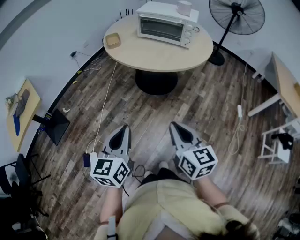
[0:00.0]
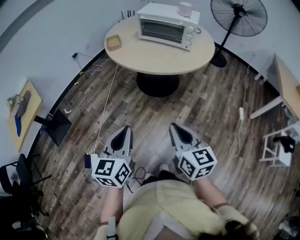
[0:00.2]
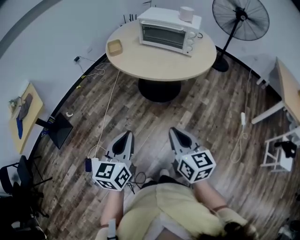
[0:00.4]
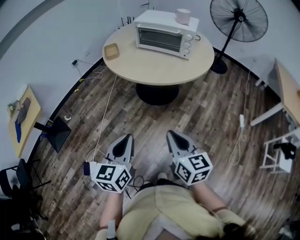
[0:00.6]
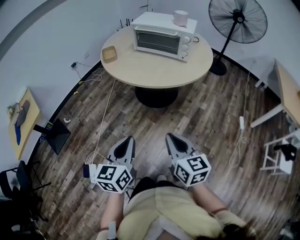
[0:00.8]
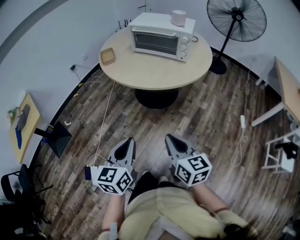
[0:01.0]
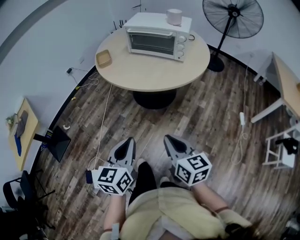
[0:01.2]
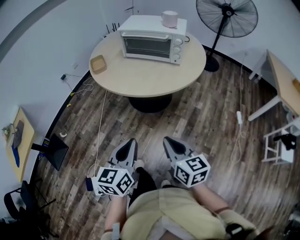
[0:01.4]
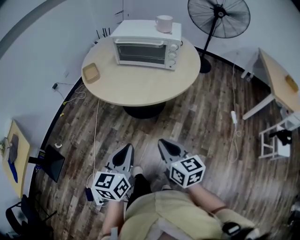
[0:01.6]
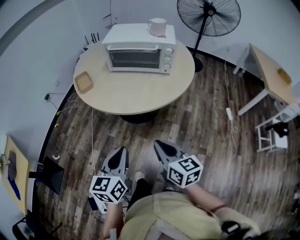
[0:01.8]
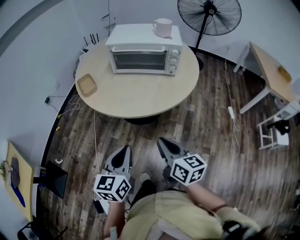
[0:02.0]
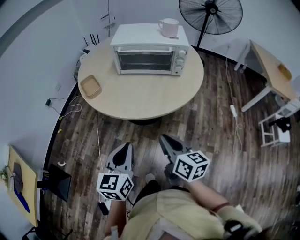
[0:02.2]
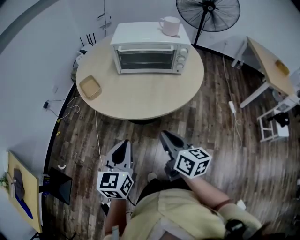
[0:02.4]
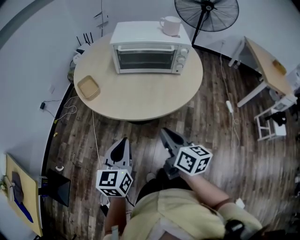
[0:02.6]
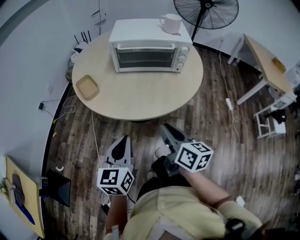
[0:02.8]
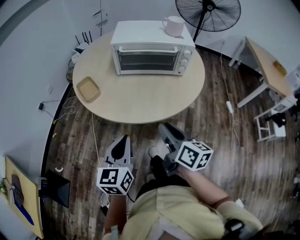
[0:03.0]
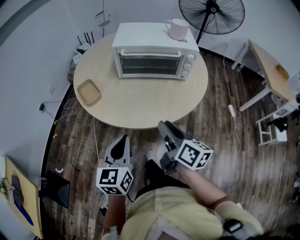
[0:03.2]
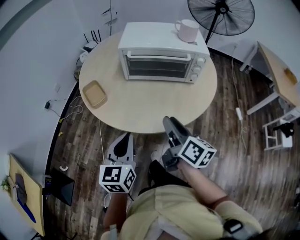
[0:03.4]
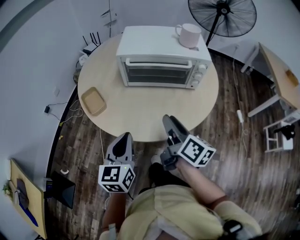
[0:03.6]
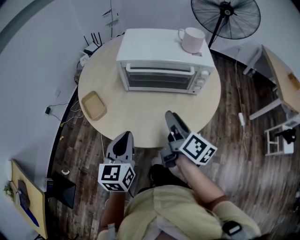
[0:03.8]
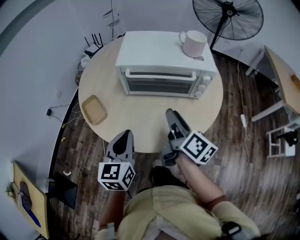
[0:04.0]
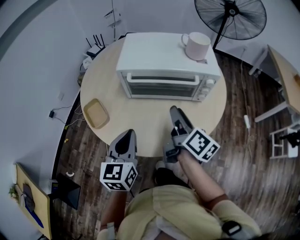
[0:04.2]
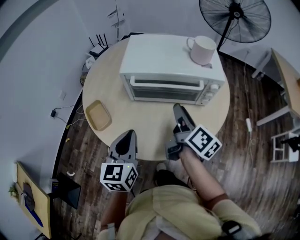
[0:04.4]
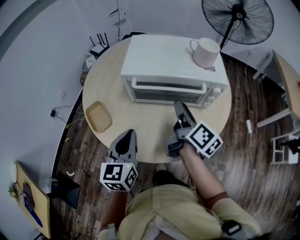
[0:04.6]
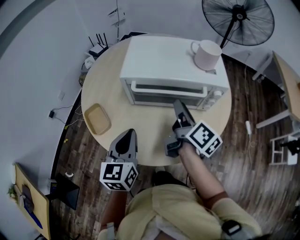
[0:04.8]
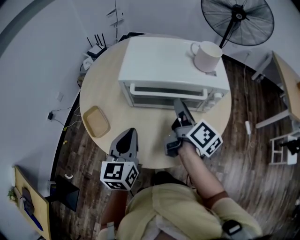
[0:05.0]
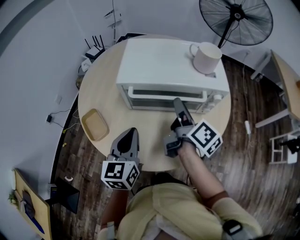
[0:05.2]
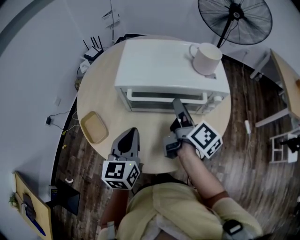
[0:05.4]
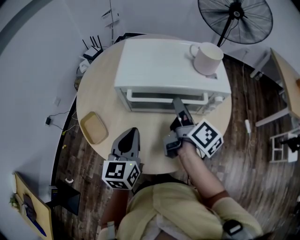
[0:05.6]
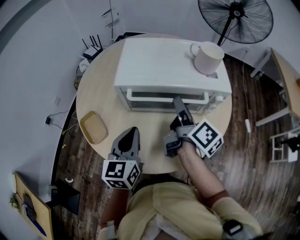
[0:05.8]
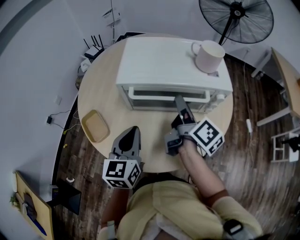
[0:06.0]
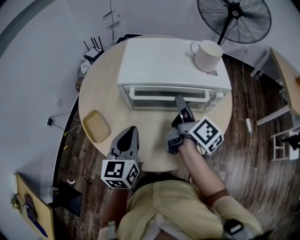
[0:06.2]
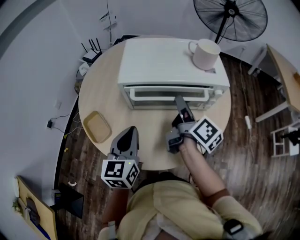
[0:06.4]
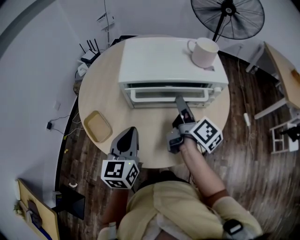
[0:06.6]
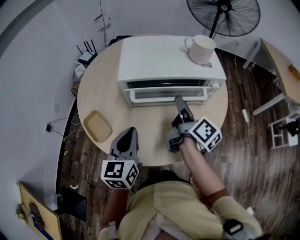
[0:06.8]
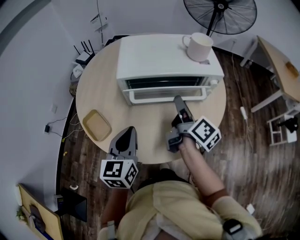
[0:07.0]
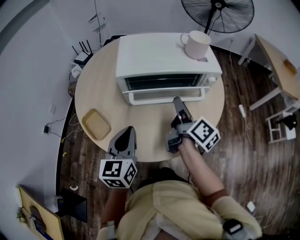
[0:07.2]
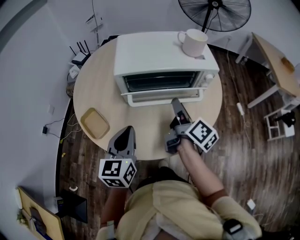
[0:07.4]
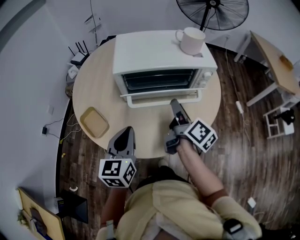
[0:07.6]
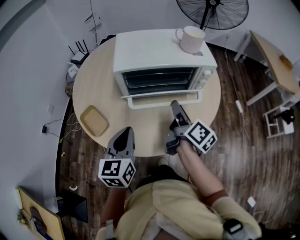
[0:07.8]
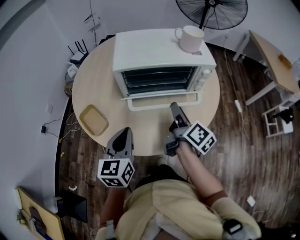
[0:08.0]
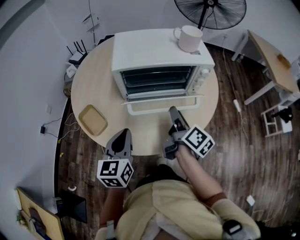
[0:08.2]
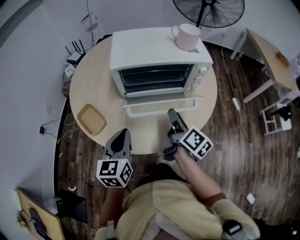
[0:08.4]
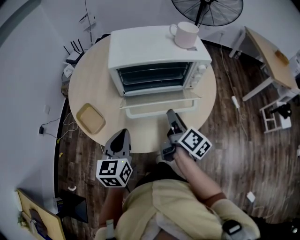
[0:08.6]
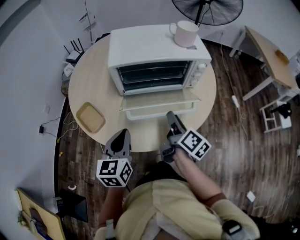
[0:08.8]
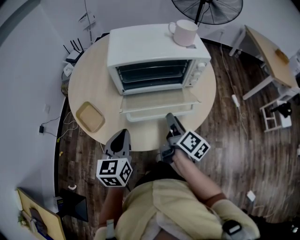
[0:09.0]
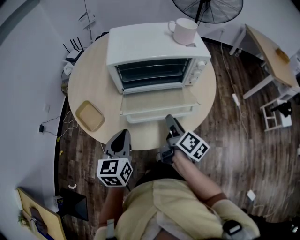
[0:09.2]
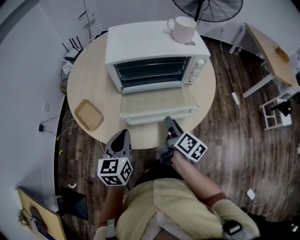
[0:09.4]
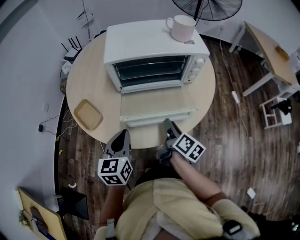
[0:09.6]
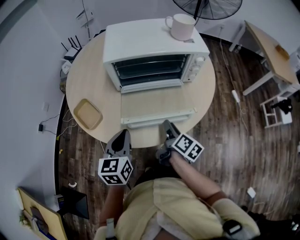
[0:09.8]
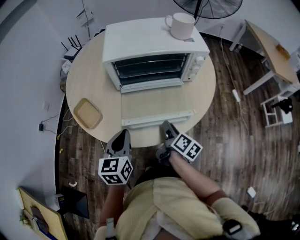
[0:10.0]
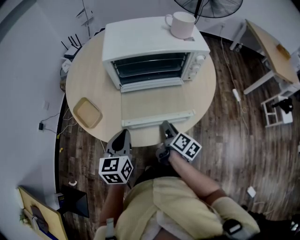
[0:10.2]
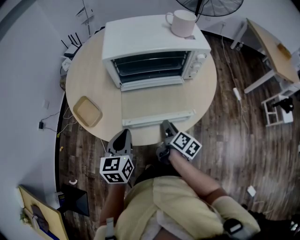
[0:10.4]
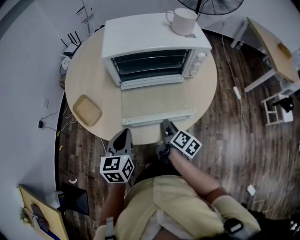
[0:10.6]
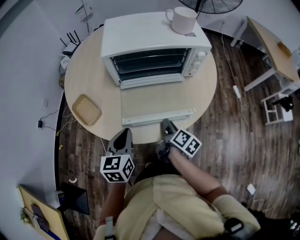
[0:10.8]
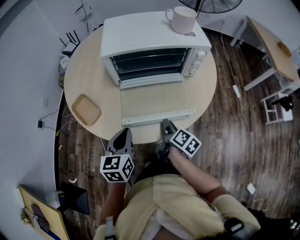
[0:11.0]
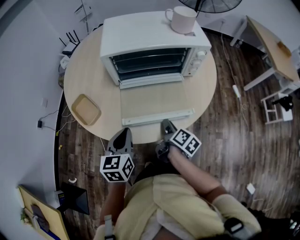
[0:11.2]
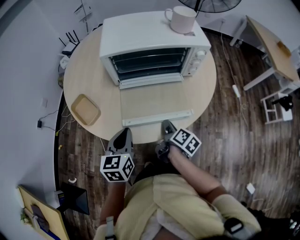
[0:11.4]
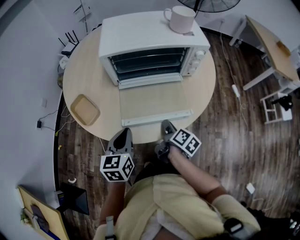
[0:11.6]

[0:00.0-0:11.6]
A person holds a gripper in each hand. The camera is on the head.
0:00.0 to 0:01.4: The left gripper moves forward and to the right, some 15 cm. The right gripper goes approximately 10 cm forward.
0:01.4 to 0:02.8: Both grippers move forward and to the left, about 25 cm. The right gripper turns by some 30 degrees.
0:02.8 to 0:04.4: Both grippers travel together forward, roughly 25 cm. The right gripper rotates approximately 20 degrees, and opens.
0:04.4 to 0:05.8: The two grippers go some 10 cm forward.
0:05.8 to 0:07.2: The right gripper moves backward, approximately 5 cm; the left gripper ends up about 5 cm from where it was.
0:07.2 to 0:08.8: The right gripper travels backward and downward by some 10 cm, while the left gripper moves approximately 5 cm.
0:08.8 to 0:10.2: The right gripper travels downward by some 10 cm.
0:10.2 to 0:11.6: The grippers make only small movements.

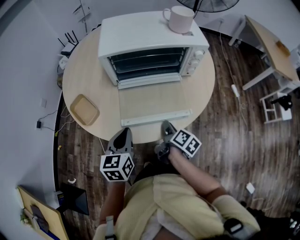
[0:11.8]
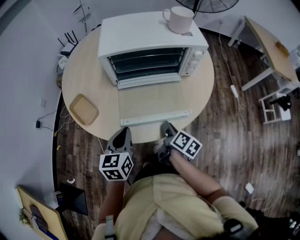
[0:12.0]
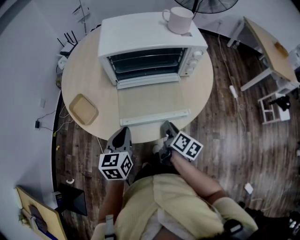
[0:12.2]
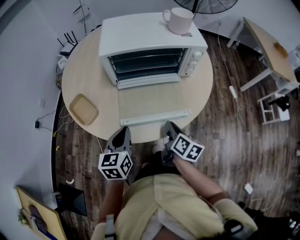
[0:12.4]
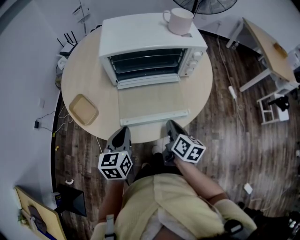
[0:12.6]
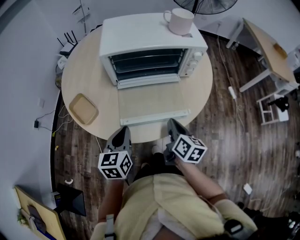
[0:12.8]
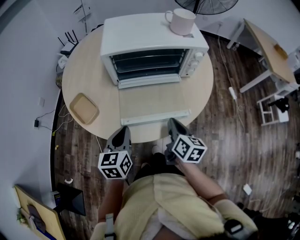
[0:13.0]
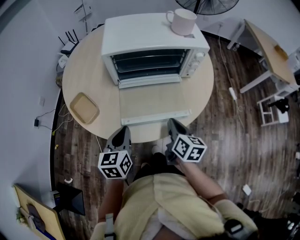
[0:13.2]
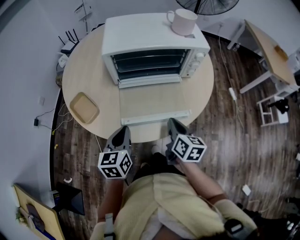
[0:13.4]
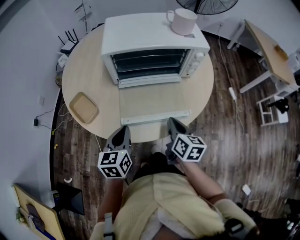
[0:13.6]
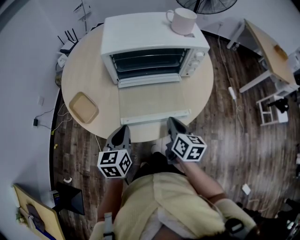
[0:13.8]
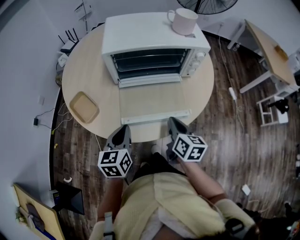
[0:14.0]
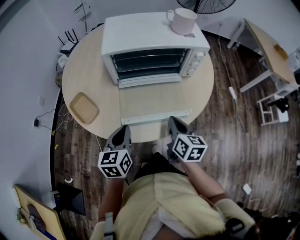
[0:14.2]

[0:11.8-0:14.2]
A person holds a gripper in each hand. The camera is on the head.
0:11.8 to 0:13.0: The right gripper moves upward, roughly 10 cm, and rotates approximately 30 degrees.
0:13.0 to 0:14.2: The grippers move only a little.

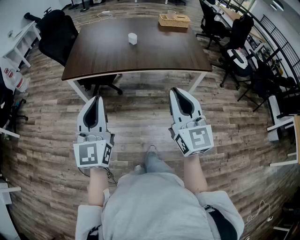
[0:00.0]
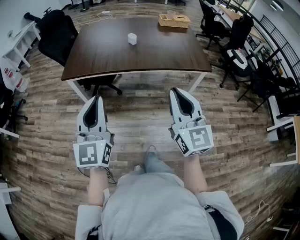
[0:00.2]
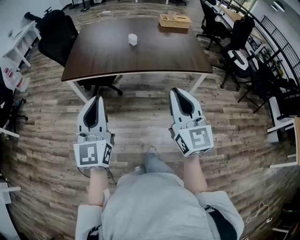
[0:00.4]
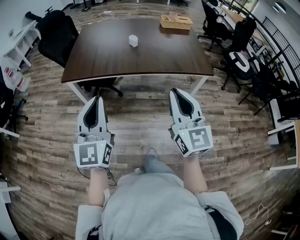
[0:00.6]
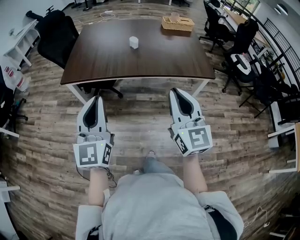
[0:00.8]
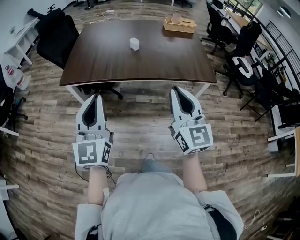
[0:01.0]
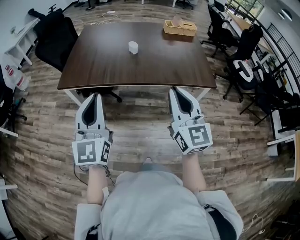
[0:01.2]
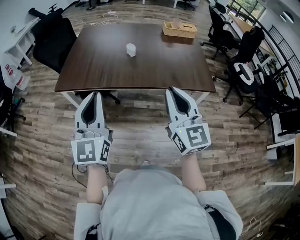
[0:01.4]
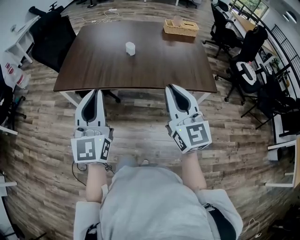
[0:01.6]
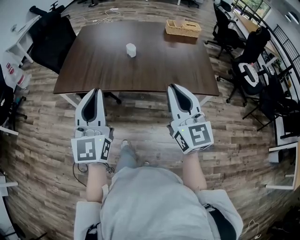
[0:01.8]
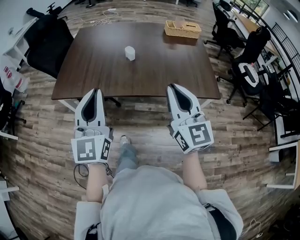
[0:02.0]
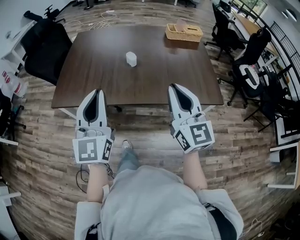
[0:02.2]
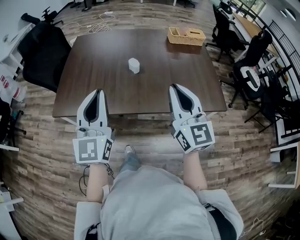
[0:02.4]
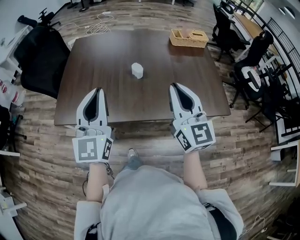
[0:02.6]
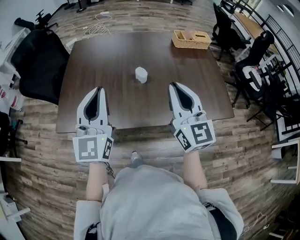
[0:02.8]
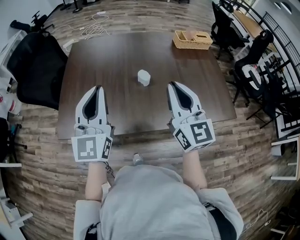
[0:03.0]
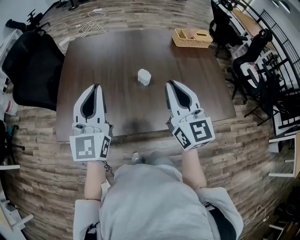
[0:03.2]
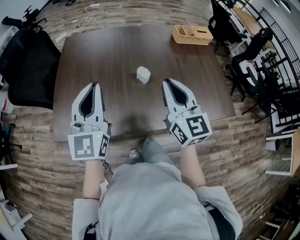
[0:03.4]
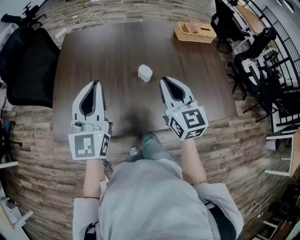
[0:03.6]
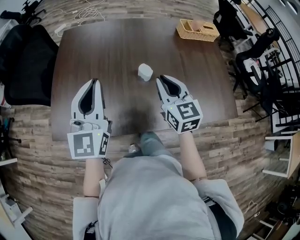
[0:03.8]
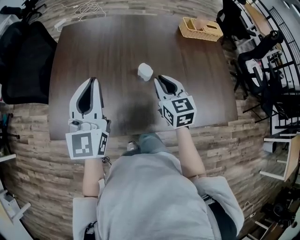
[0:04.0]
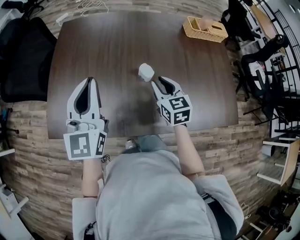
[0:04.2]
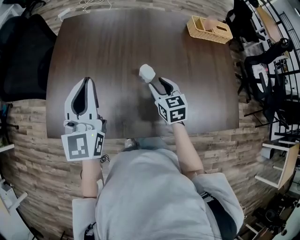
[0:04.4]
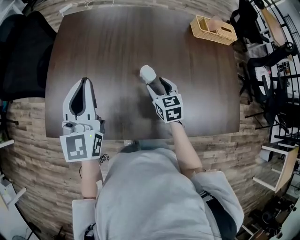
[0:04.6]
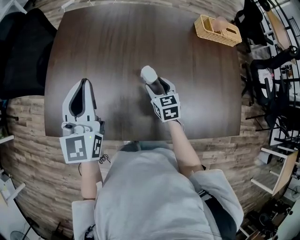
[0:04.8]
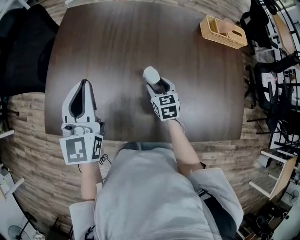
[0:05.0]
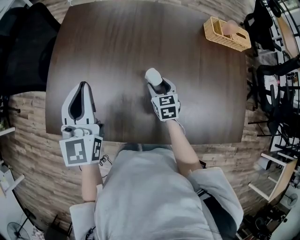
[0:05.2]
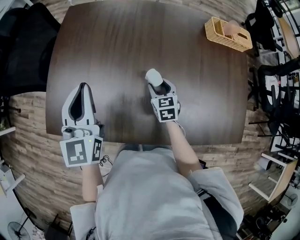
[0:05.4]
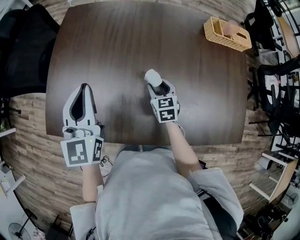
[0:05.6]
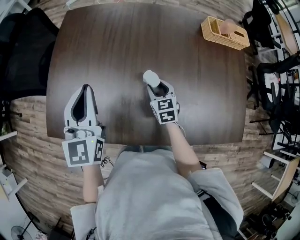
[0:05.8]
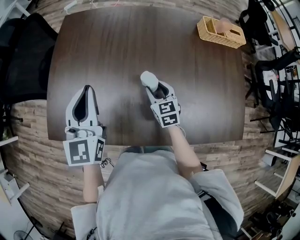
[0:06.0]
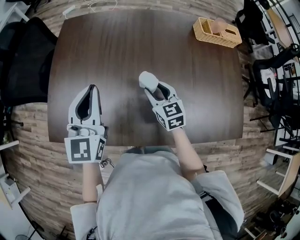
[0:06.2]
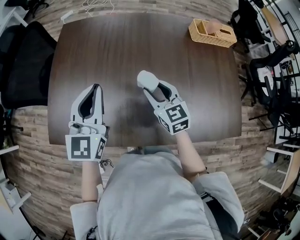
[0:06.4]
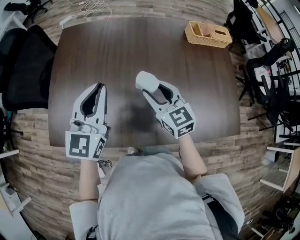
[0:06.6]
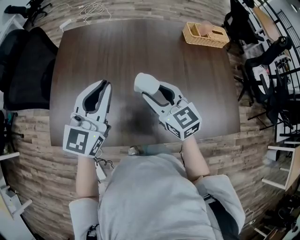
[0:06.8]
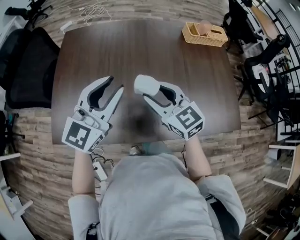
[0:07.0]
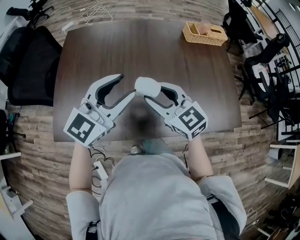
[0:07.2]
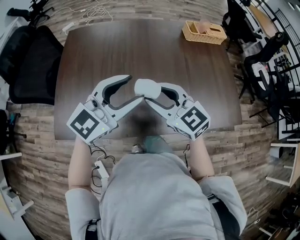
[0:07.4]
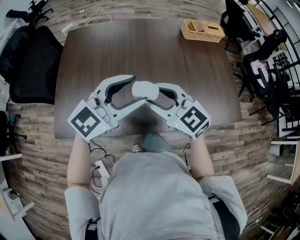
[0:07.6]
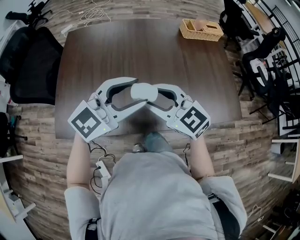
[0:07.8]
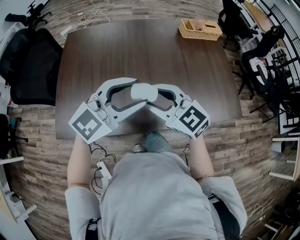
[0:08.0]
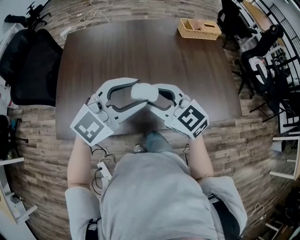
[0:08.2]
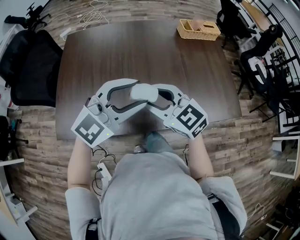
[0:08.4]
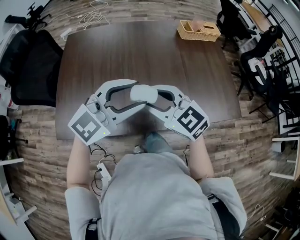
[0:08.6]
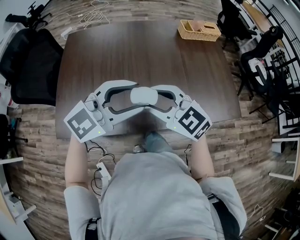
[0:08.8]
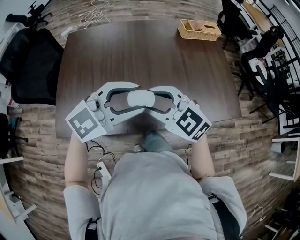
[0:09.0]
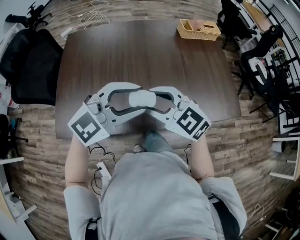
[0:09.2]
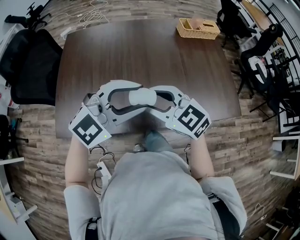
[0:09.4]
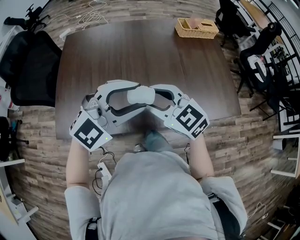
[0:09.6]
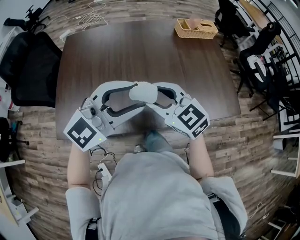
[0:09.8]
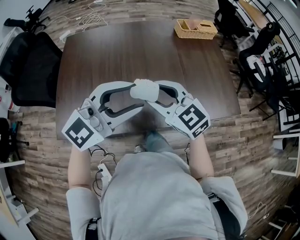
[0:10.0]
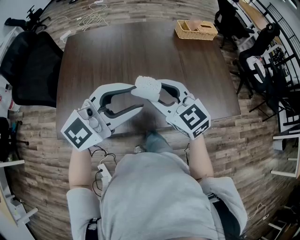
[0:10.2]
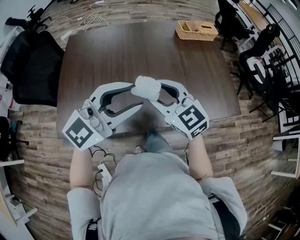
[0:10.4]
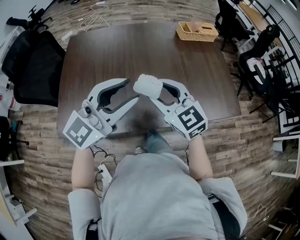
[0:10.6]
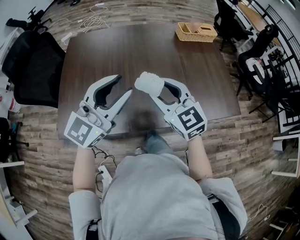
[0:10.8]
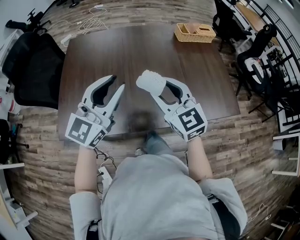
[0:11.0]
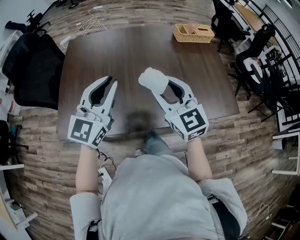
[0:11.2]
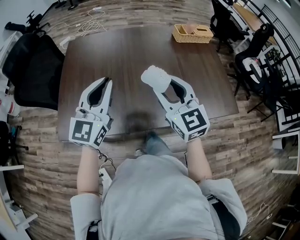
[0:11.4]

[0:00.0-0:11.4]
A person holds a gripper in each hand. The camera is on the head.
0:00.0 to 0:01.4: The right gripper travels forward by about 15 cm. The left gripper travels forward and to the right by approximately 15 cm.
0:01.4 to 0:02.8: Both grippers travel together forward, some 30 cm.
0:02.8 to 0:04.2: The left gripper is displaced forward by approximately 15 cm; the right gripper shifts roughly 30 cm downward and forward, and tilts its fingers approximately 30 degrees downward.
0:04.2 to 0:05.6: The right gripper shifts about 15 cm downward and forward, and opens its fingers; the left gripper travels forward and downward by roughly 10 cm.
0:05.6 to 0:07.2: The left gripper goes approximately 15 cm to the right, backward and upward, turns by roughly 50 degrees, and opens up. The right gripper heads upward and backward, covering roughly 25 cm, and rotates approximately 30 degrees.
0:07.2 to 0:08.6: Both grippers travel together backward, about 5 cm. The left gripper rotates roughly 20 degrees.
0:08.6 to 0:10.0: The left gripper shifts by some 5 cm.
0:10.0 to 0:11.4: The right gripper changes its angle by some 20 degrees; the left gripper shifts about 10 cm to the left and forward, changes its angle by some 40 degrees, and closes.
